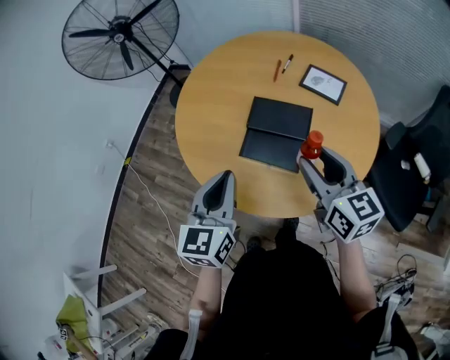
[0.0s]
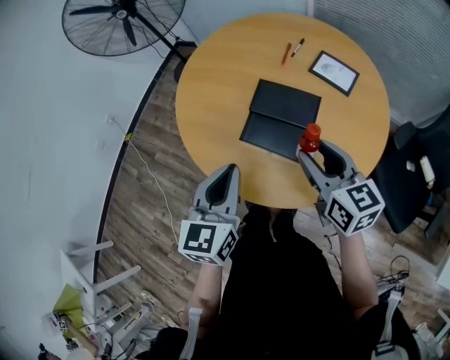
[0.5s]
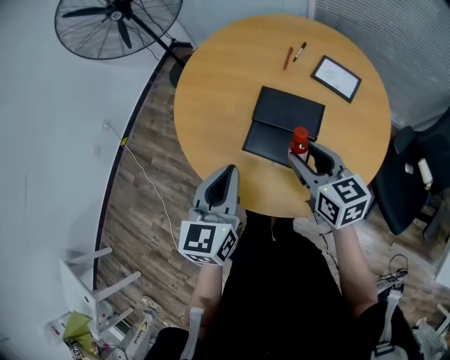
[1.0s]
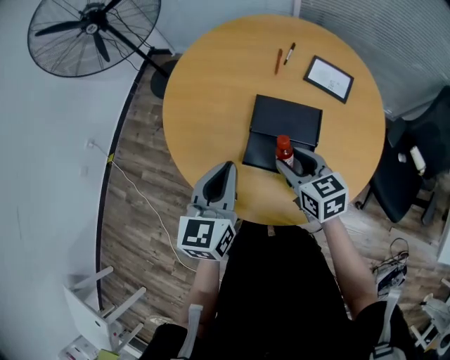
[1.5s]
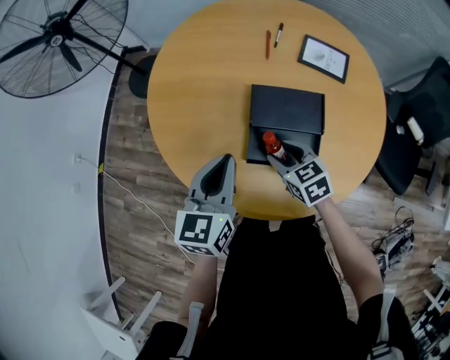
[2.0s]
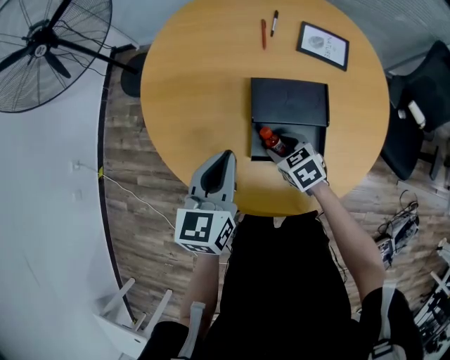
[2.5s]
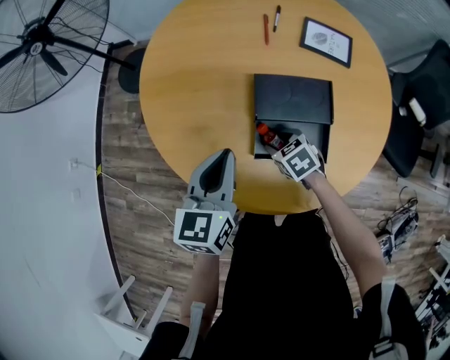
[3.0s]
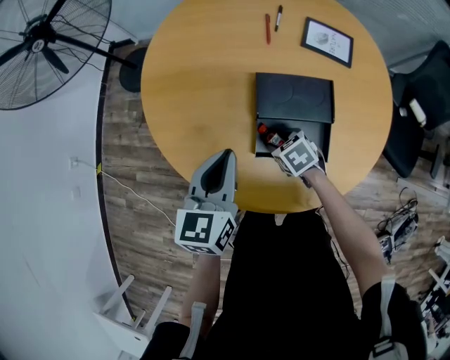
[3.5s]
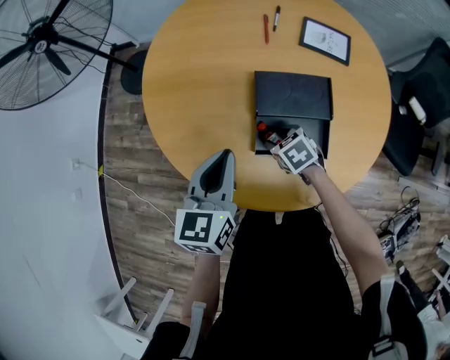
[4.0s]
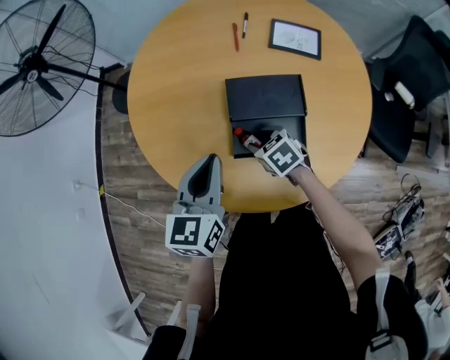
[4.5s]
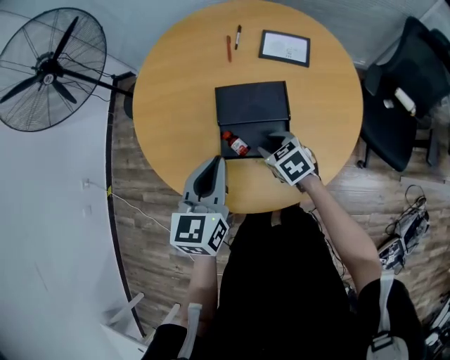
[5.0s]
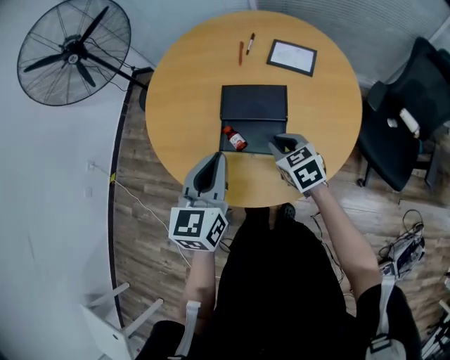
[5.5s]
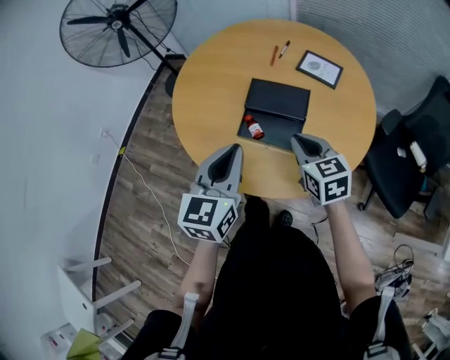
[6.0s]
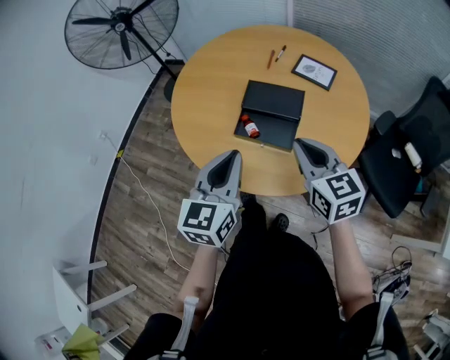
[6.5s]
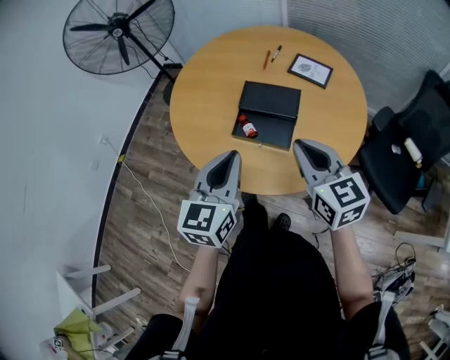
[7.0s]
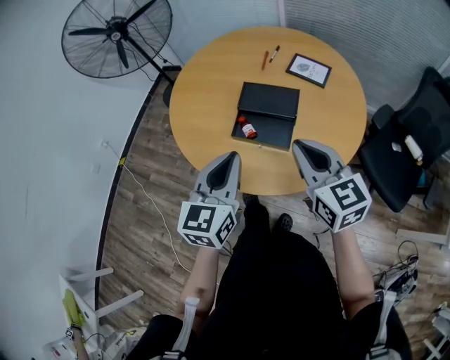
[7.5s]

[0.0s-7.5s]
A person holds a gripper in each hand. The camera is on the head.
0.0s to 2.0s: The left gripper travels forward and downward by about 20 cm. Meanwhile the right gripper moves downward, to the left and forward, some 30 cm, and tips its fingers downward by approximately 30 degrees.
2.0s to 4.0s: The right gripper travels downward by some 10 cm.
4.0s to 5.5s: The right gripper travels upward, to the right and backward by approximately 20 cm, turns by approximately 20 degrees, and closes up. Meanwhile the left gripper travels to the right, backward and upward by approximately 15 cm.
5.5s to 7.5s: The right gripper heads upward and backward, covering some 25 cm, and turns by approximately 30 degrees. Meanwhile the left gripper goes about 10 cm backward.

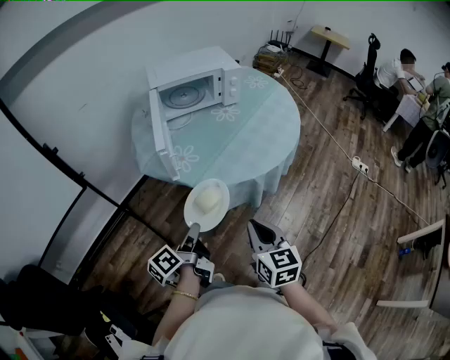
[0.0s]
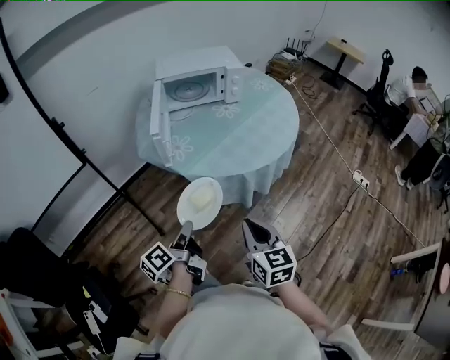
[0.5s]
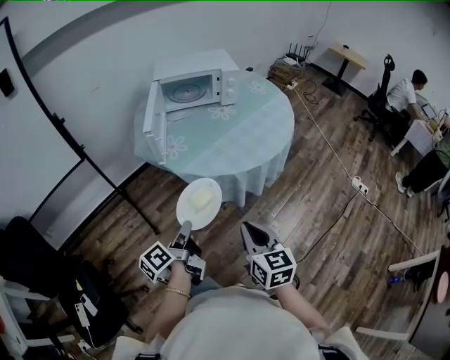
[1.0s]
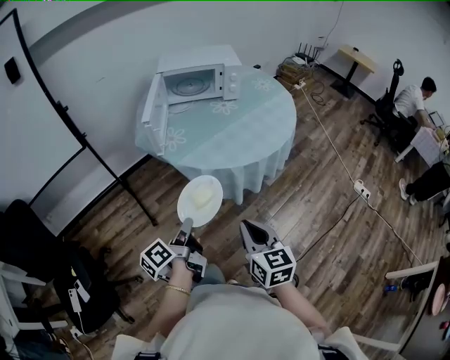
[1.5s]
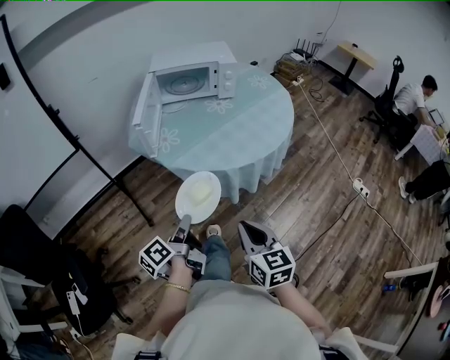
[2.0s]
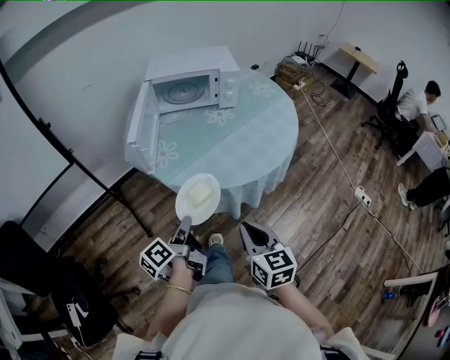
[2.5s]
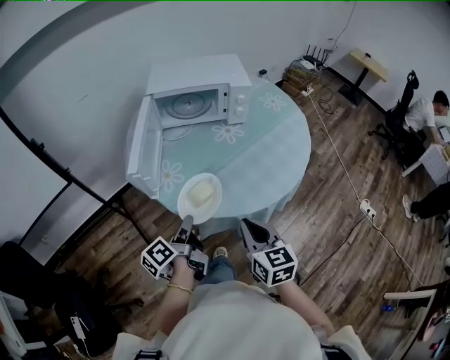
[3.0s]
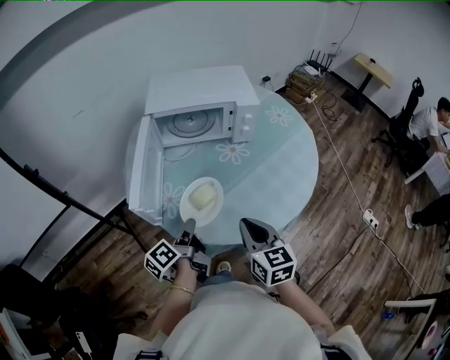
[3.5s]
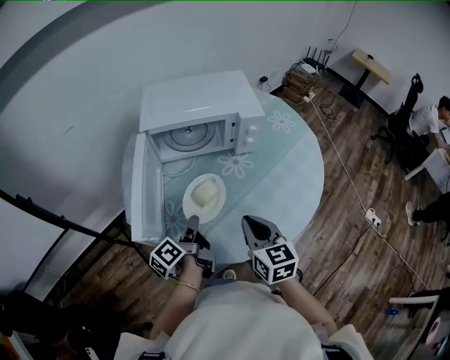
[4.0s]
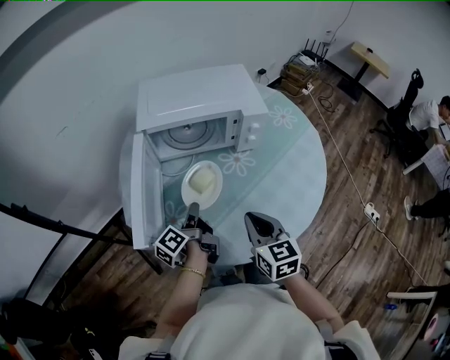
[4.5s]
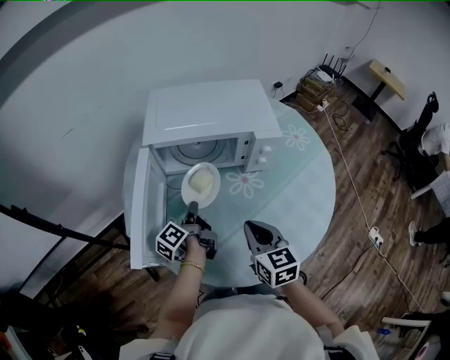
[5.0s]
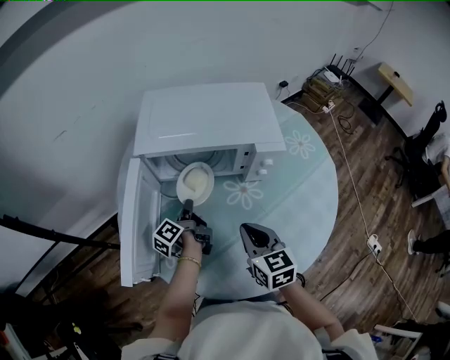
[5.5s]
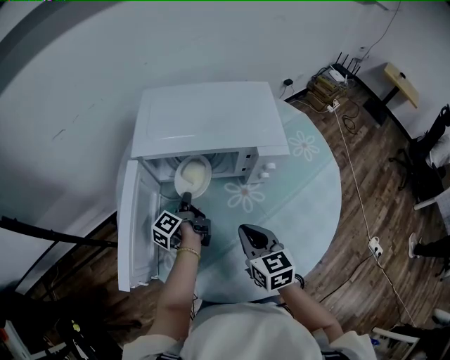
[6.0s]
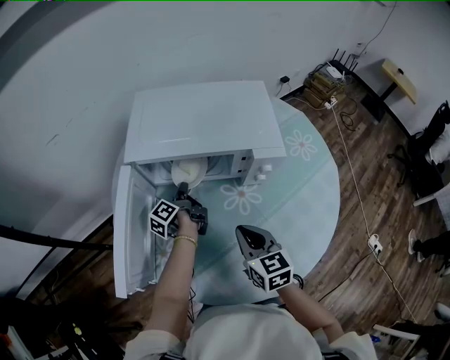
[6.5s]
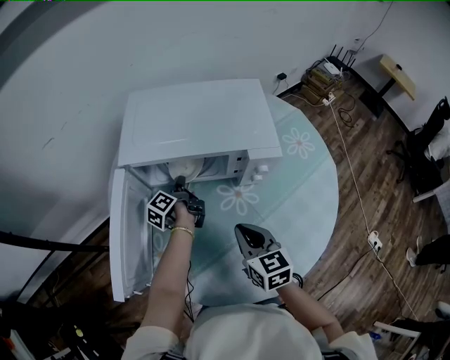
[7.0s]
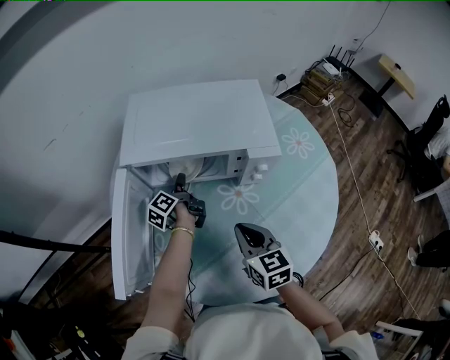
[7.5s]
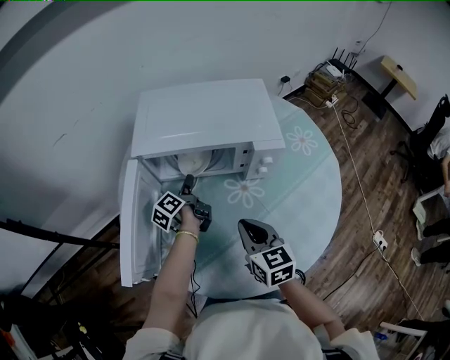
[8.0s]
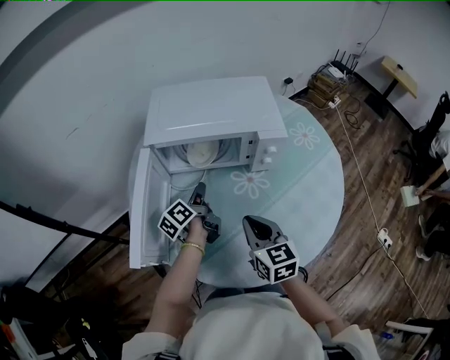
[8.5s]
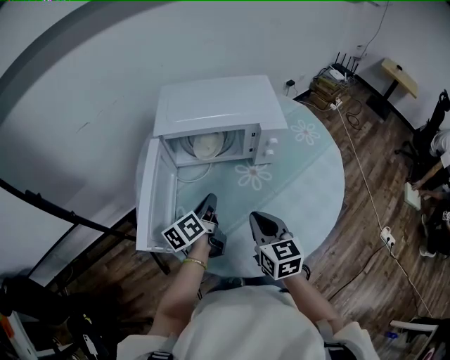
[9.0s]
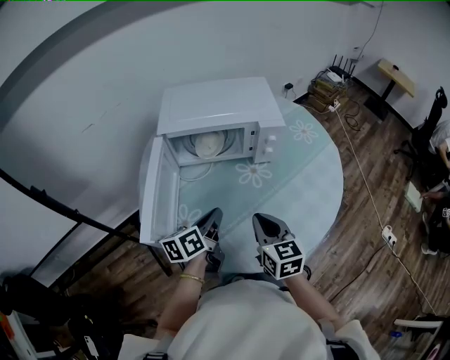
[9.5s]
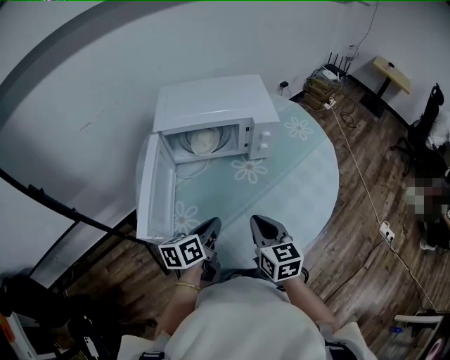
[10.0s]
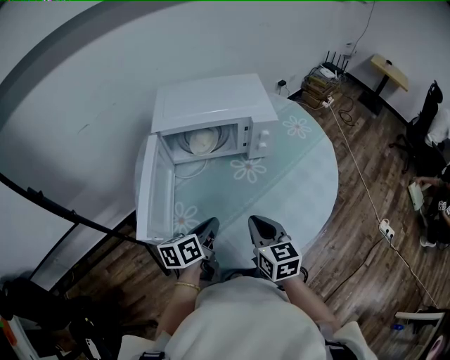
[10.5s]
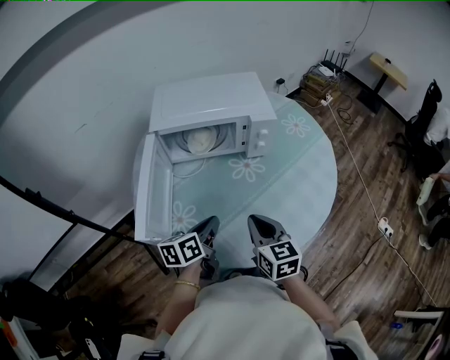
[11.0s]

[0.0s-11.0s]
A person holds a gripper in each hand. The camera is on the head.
0.0s to 2.0s: The right gripper ends up some 15 cm from where it was.
2.0s to 3.5s: The right gripper moves roughly 35 cm.
3.5s to 5.5s: The right gripper shifts by approximately 25 cm.
7.5s to 9.0s: The right gripper moves roughly 10 cm.
9.0s to 11.0s: The right gripper changes place by some 5 cm.

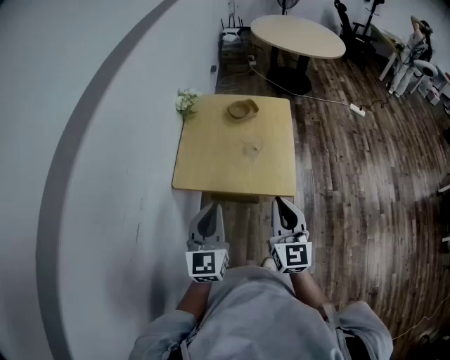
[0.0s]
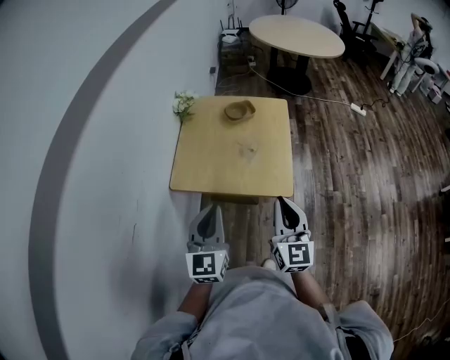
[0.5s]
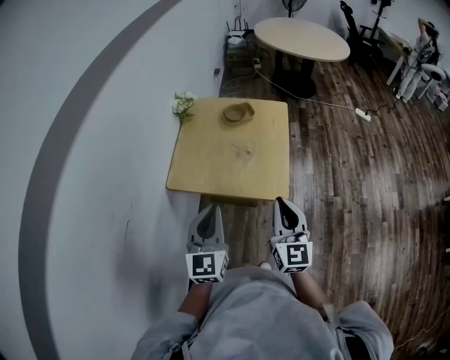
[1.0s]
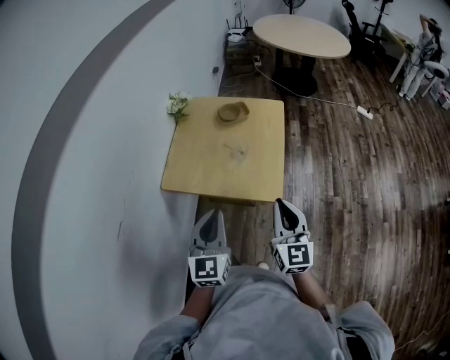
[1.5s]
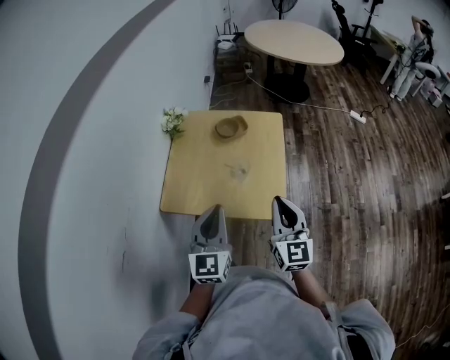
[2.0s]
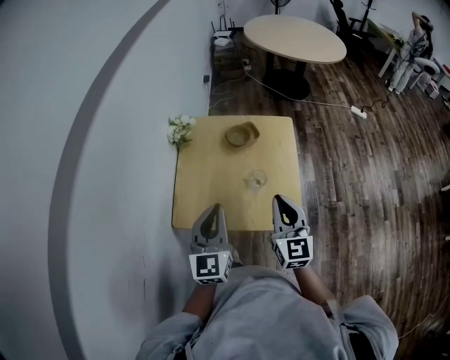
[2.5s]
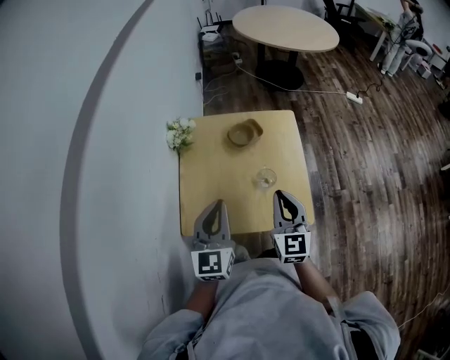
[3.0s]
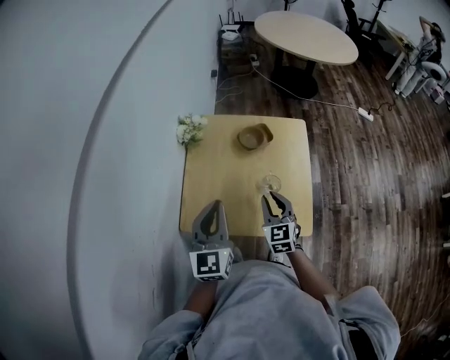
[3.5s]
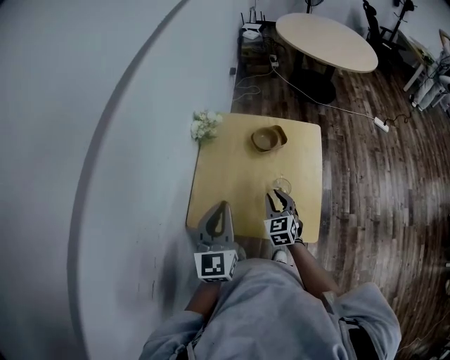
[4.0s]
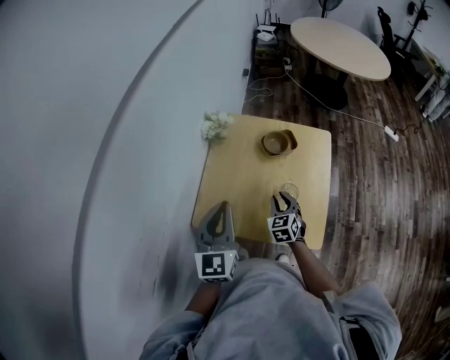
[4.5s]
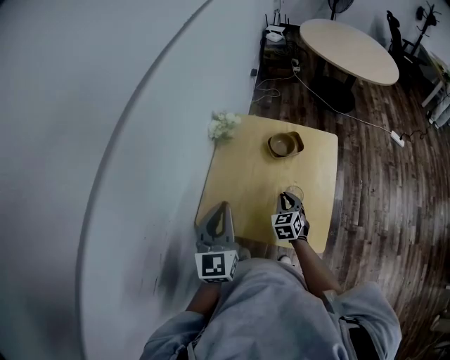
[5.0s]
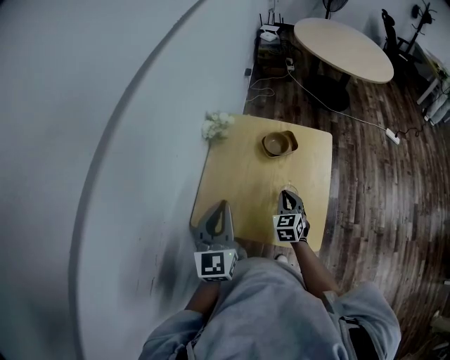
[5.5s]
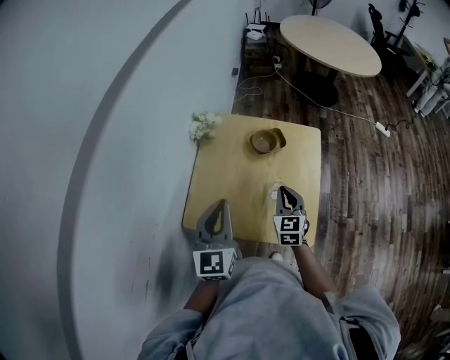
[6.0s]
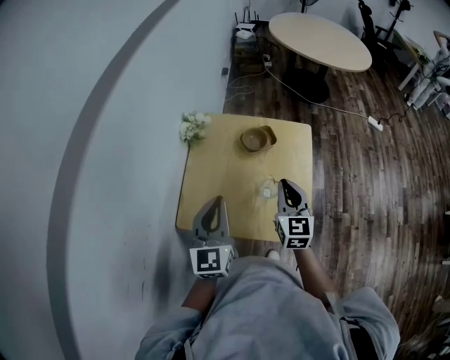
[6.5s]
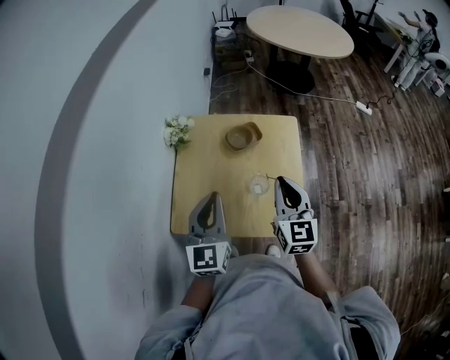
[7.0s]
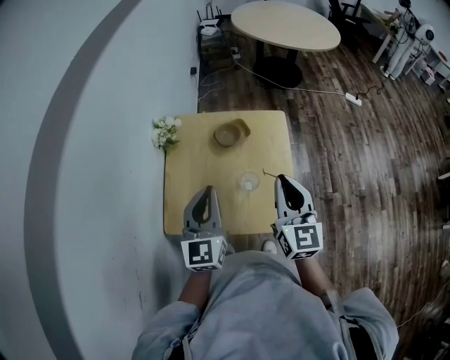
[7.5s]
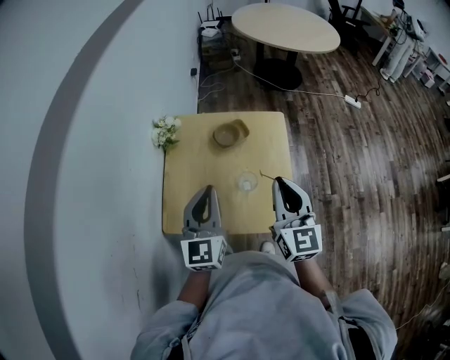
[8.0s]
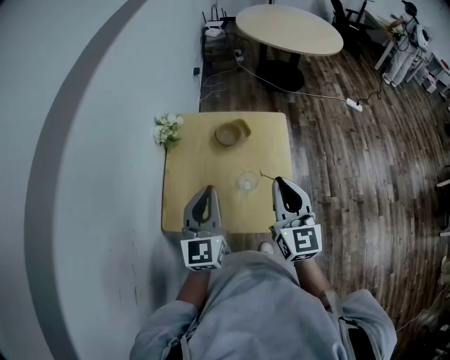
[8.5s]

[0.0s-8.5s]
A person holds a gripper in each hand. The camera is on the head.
0.0s to 2.0s: Both grippers move forward and to the right, some 10 cm.
2.0s to 4.0s: The left gripper heads forward and to the left, covering roughly 15 cm; the right gripper is displaced downward, forward and to the left by approximately 30 cm, and changes its angle by approximately 30 degrees.
4.0s to 6.5s: The right gripper moves upward and to the right, approximately 15 cm, and rotates about 20 degrees.
6.5s to 8.5s: The right gripper moves upward and backward, about 10 cm.
